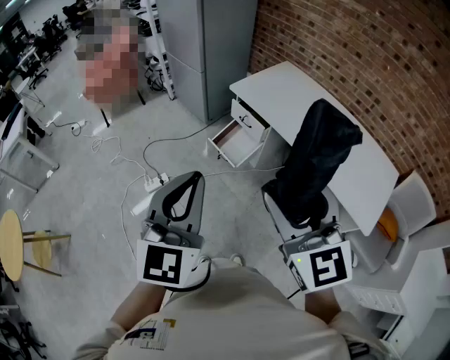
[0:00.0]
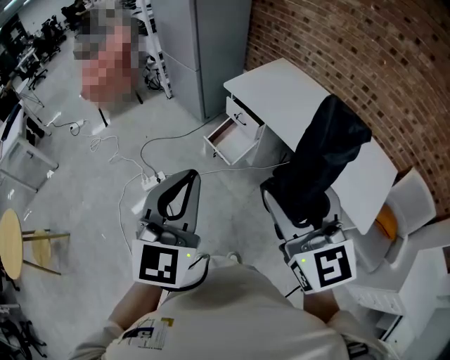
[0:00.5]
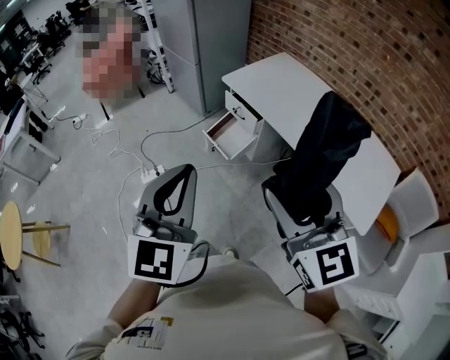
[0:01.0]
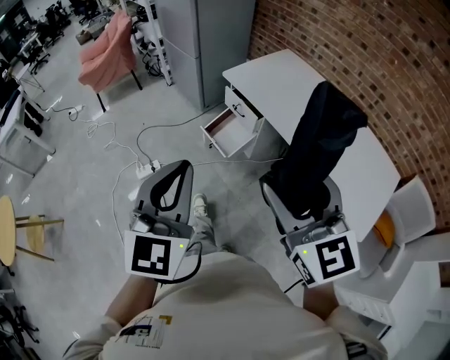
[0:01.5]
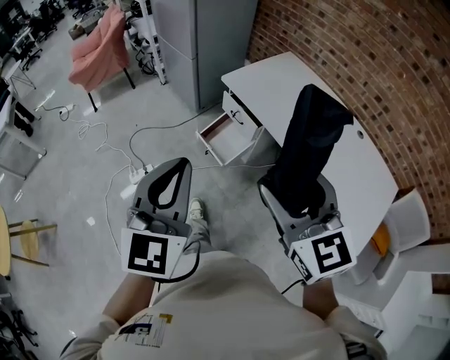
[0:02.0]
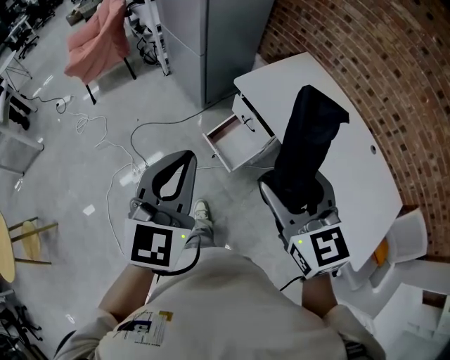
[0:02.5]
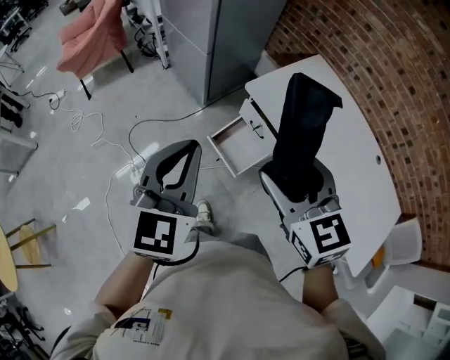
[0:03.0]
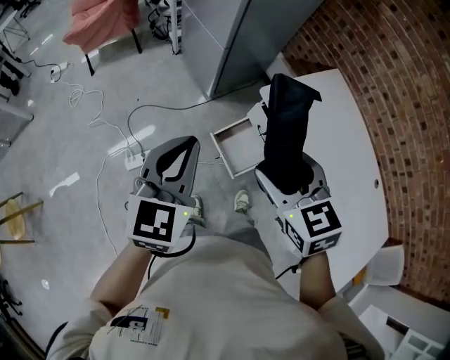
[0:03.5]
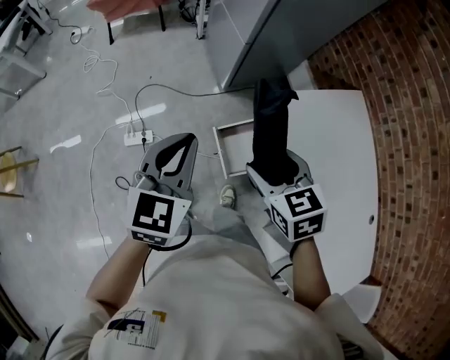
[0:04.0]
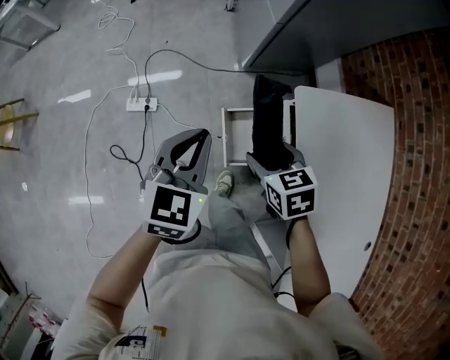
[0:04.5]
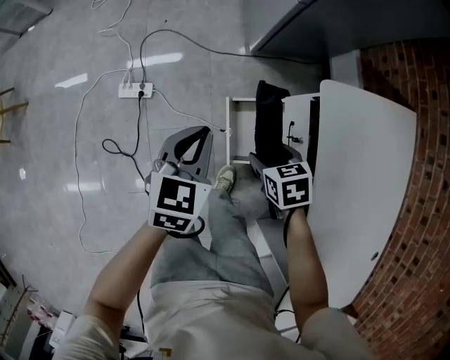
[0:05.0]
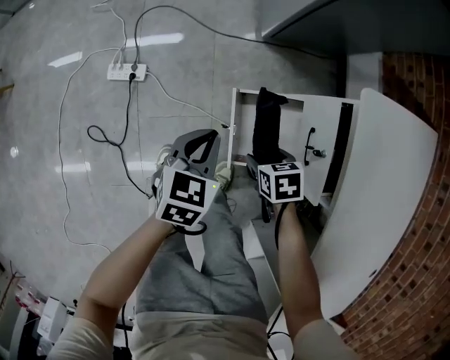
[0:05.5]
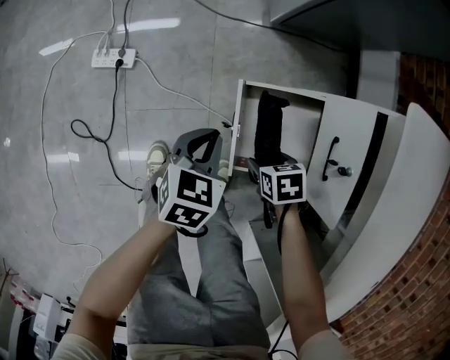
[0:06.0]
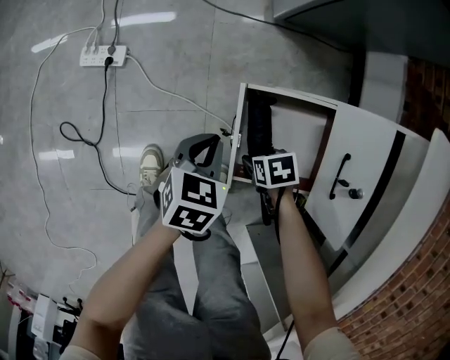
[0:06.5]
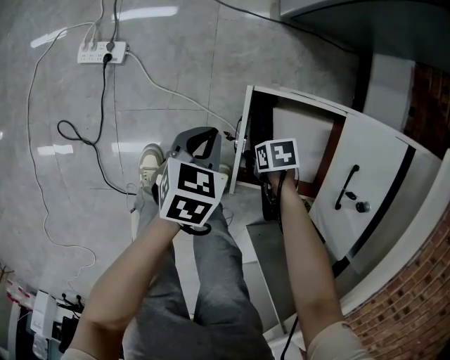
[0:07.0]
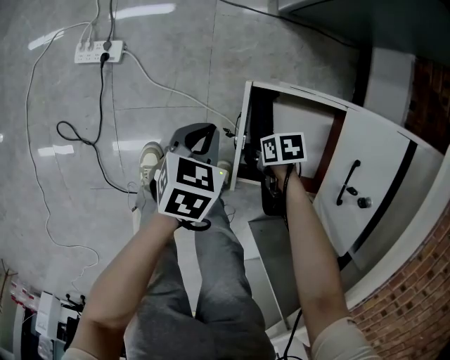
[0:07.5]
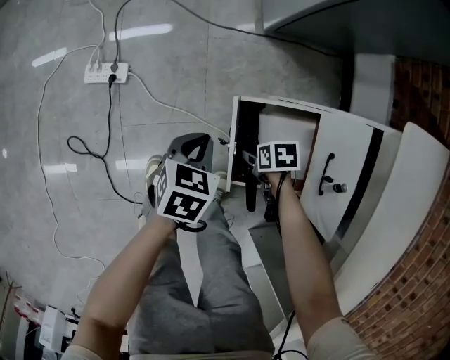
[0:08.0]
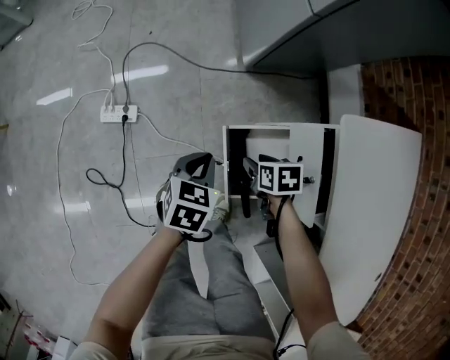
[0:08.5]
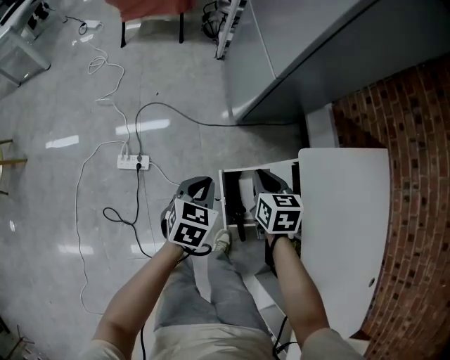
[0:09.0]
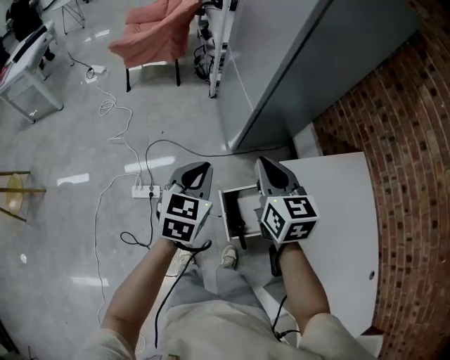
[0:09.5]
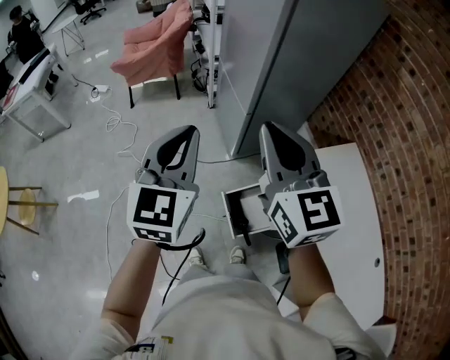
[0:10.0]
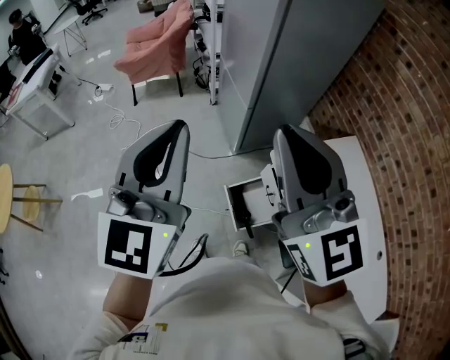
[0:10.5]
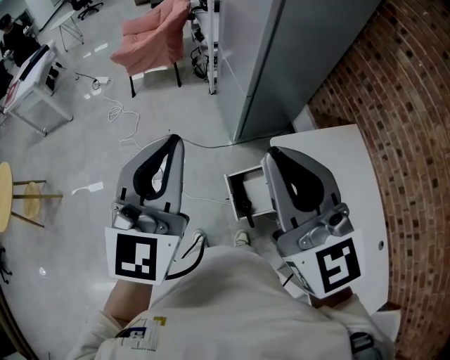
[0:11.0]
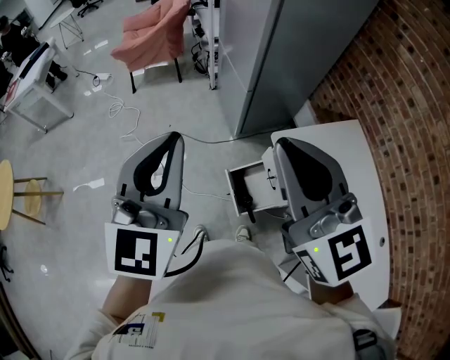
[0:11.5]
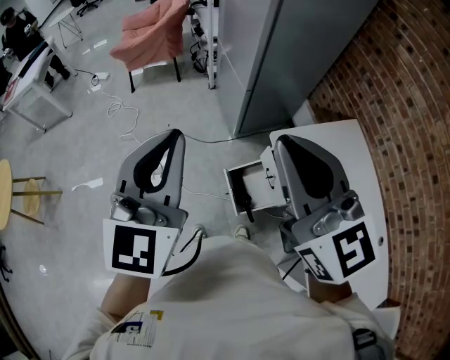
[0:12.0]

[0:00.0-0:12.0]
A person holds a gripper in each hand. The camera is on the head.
0:00.0 to 0:02.0: The right gripper travels forward, downward and to the right by roughly 15 cm; the left gripper is displaced forward by some 15 cm.
0:02.0 to 0:04.0: Both grippers travel together forward and downward, roughly 40 cm. The right gripper points its fingers roughly 30 degrees further downward. Meanwhile the left gripper changes its angle by about 30 degrees.
0:04.0 to 0:06.0: Both grippers travel together downward, about 60 cm. The left gripper rotates roughly 30 degrees, while the right gripper tips its fingers downward by approximately 30 degrees.
0:06.0 to 0:08.0: The right gripper is displaced downward by about 10 cm.
0:08.0 to 0:10.0: Both grippers move upward, approximately 80 cm. The right gripper tilts its fingers about 70 degrees upward, and closes its fingers. The left gripper angles its fingers upward, by approximately 50 degrees.
0:10.0 to 0:12.0: The left gripper shifts some 10 cm backward and upward; the right gripper heads backward, covering approximately 10 cm.

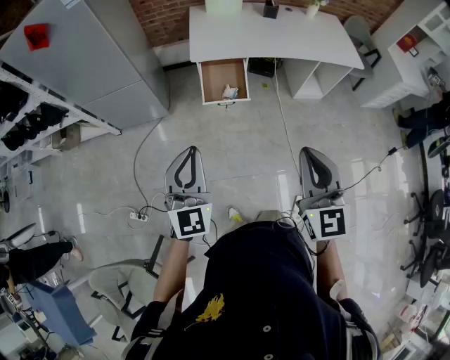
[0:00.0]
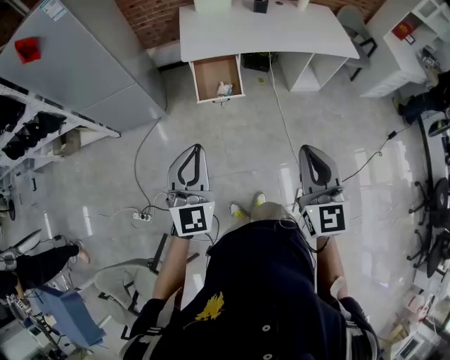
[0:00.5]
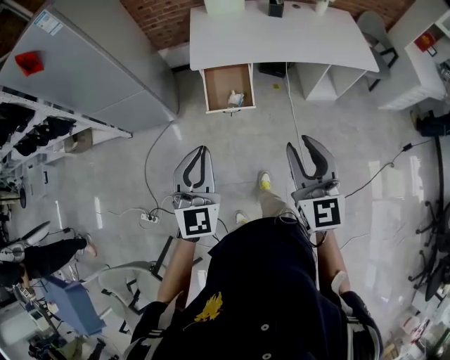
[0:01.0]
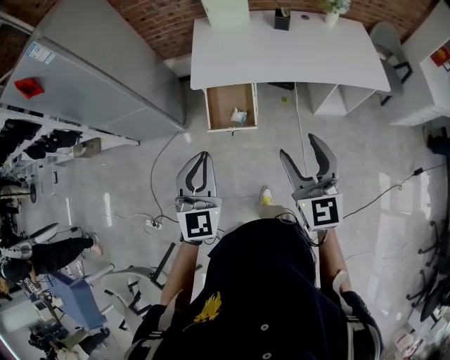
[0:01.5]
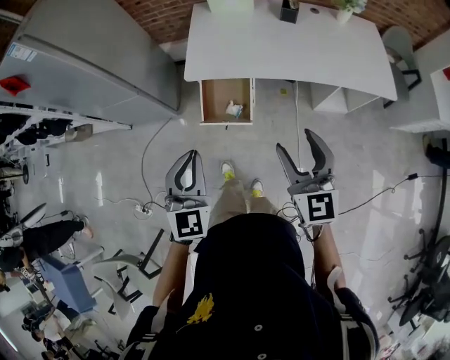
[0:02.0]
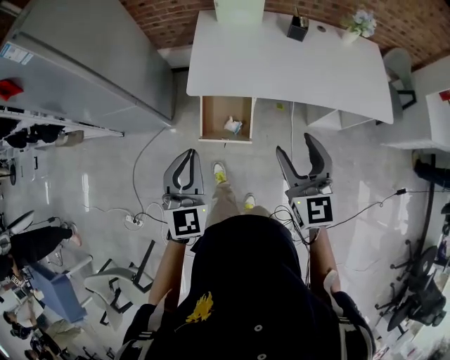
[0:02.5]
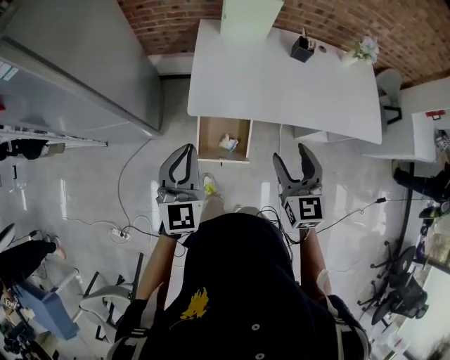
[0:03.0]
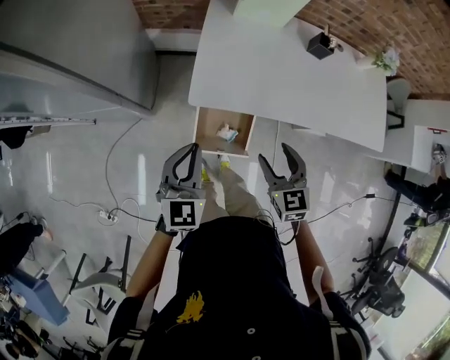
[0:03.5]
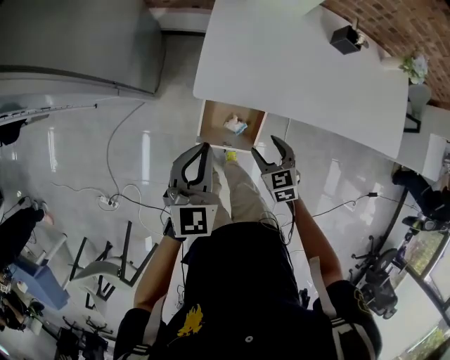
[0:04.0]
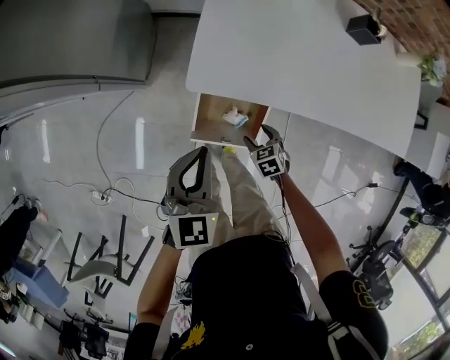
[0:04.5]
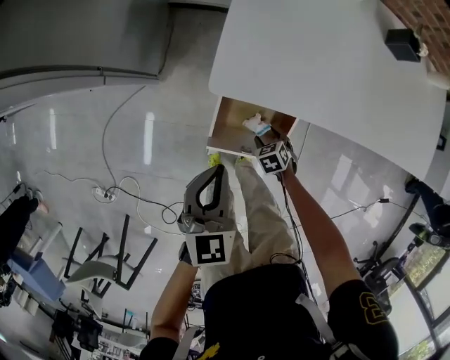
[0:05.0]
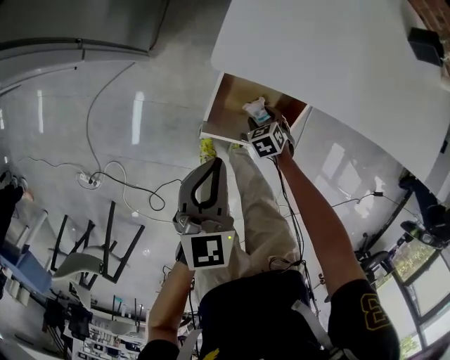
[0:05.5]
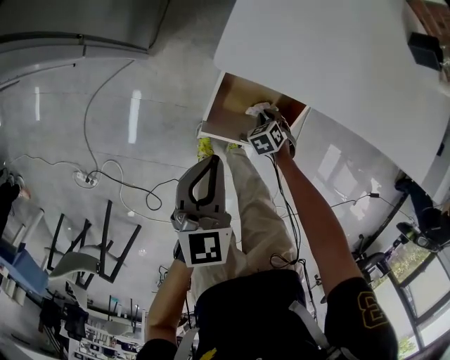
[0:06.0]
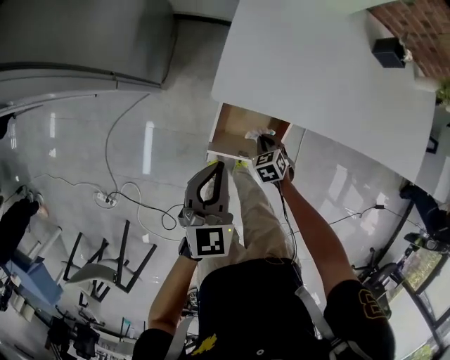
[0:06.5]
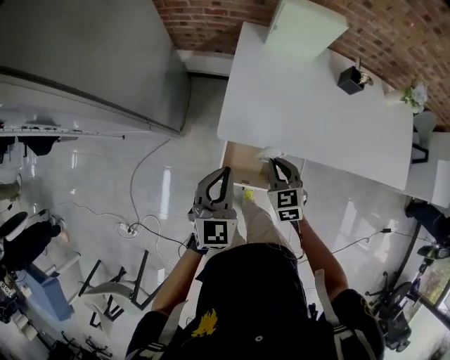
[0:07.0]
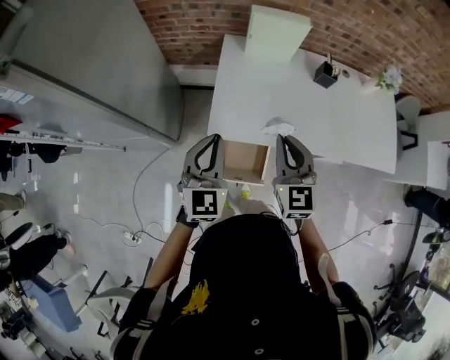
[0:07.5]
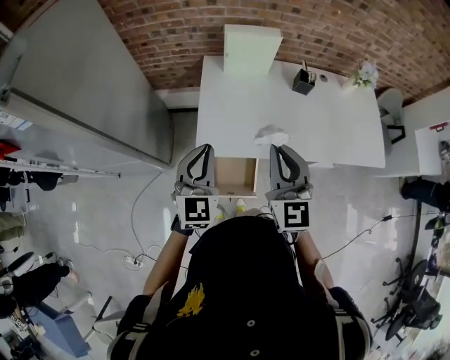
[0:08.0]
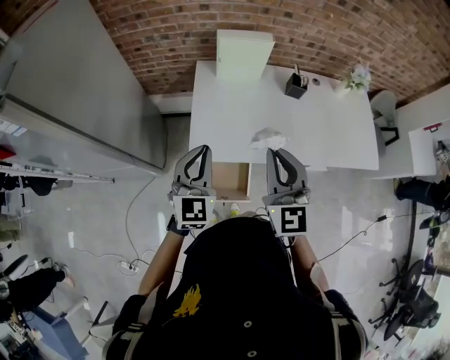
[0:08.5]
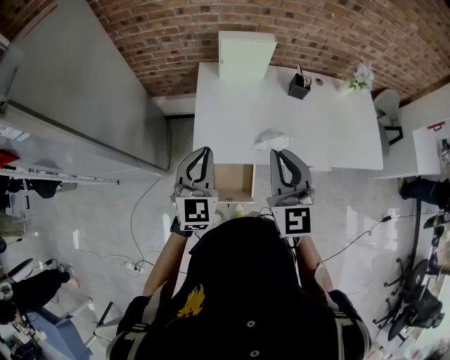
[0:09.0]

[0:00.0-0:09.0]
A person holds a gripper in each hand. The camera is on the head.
0:00.0 to 0:02.0: The grippers both shift forward and to the right by some 30 cm. The right gripper opens up.
0:02.0 to 0:04.5: The left gripper heads forward and downward, covering some 40 cm. Meanwhile the right gripper shifts some 60 cm downward and forward, and points its fingers about 60 degrees further downward.
0:04.5 to 0:07.0: The right gripper shifts some 30 cm upward, swivels some 30 degrees, and closes up, while the left gripper goes approximately 10 cm upward.
0:07.0 to 0:09.0: The left gripper travels upward and forward by some 15 cm; the right gripper travels upward by approximately 35 cm, and tips its fingers upward by approximately 40 degrees.

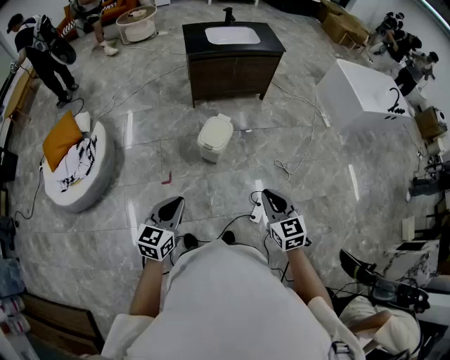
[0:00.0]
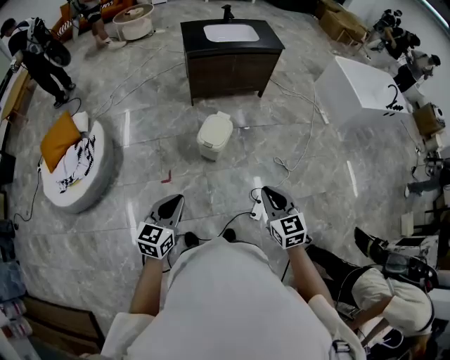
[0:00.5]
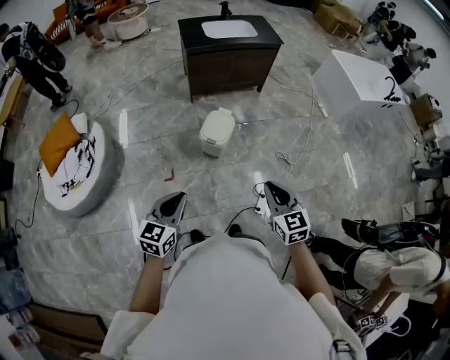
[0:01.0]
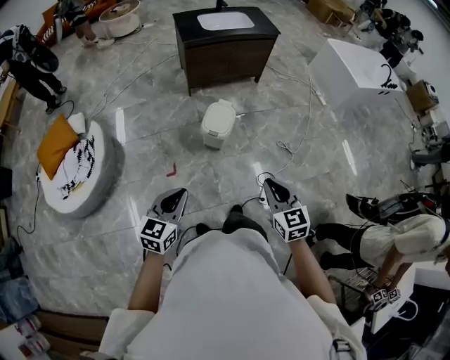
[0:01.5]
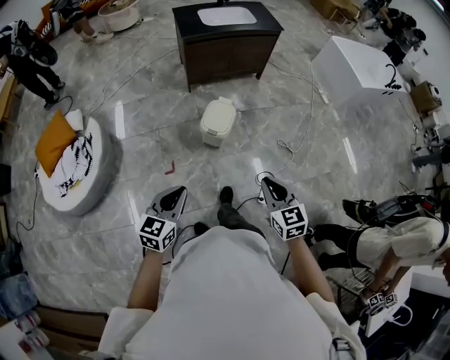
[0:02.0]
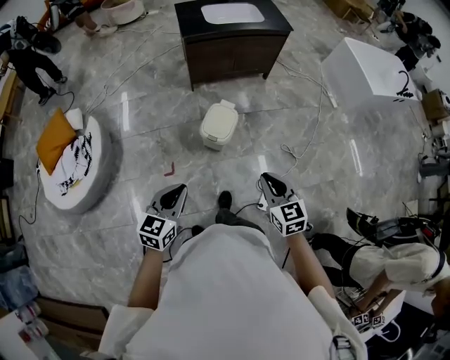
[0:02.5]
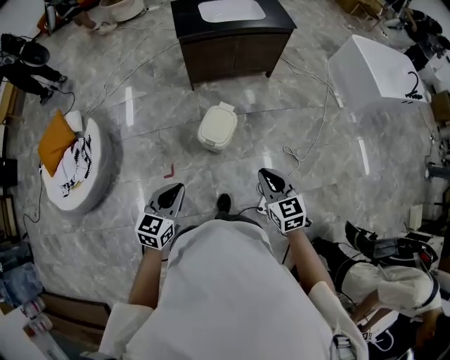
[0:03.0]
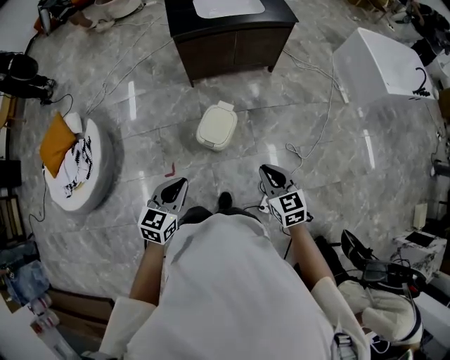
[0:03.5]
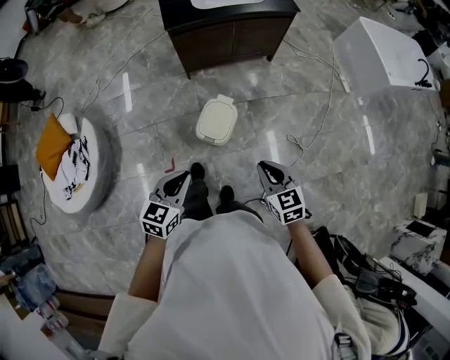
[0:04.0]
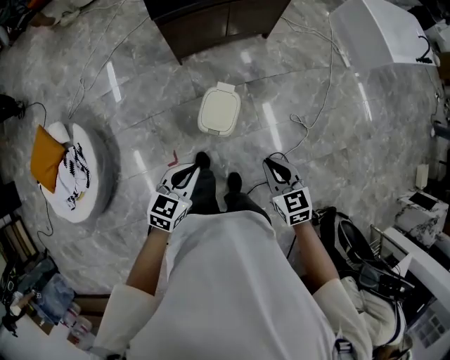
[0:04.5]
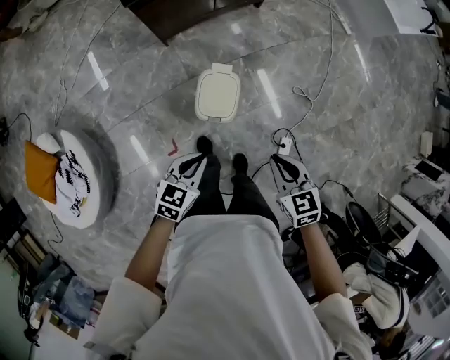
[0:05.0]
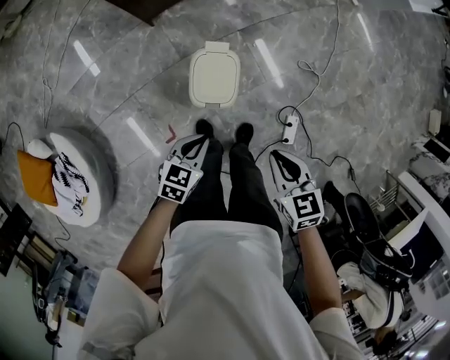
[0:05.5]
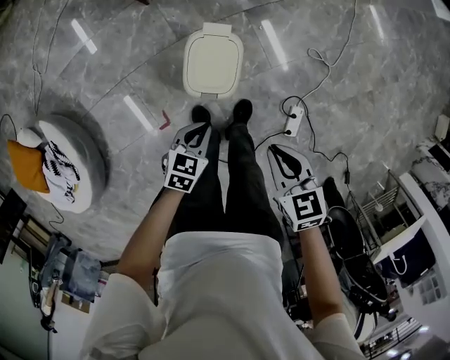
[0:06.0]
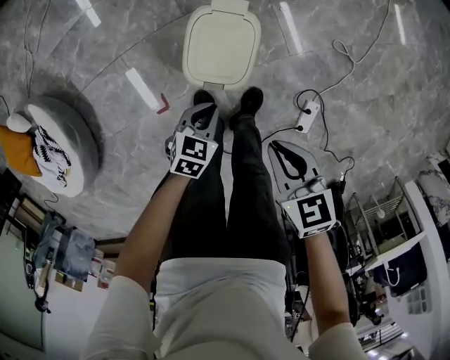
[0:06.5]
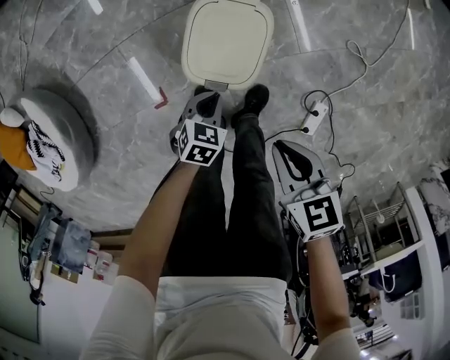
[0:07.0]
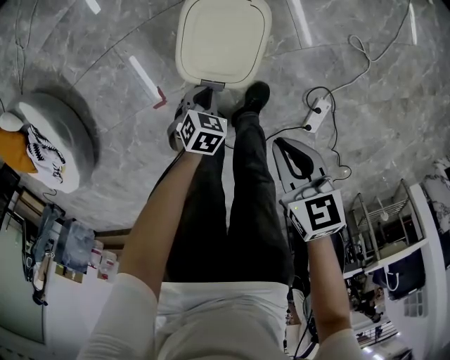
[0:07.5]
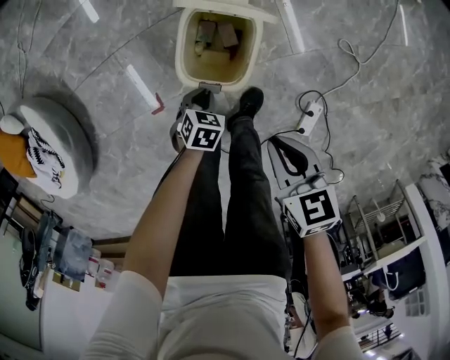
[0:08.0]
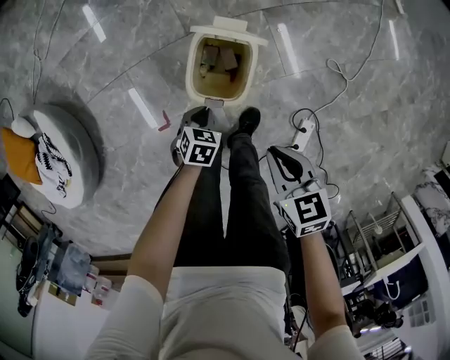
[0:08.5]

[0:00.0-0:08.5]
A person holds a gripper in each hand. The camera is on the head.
0:00.0 to 0:02.0: Both grippers travel together to the left, some 5 cm.
0:02.0 to 0:04.0: The two grippers go approximately 25 cm forward.
0:04.0 to 0:06.5: The right gripper heads downward, covering roughly 25 cm, and rotates approximately 30 degrees. The left gripper moves downward, roughly 40 cm, and turns by about 40 degrees.
0:06.5 to 0:08.5: The left gripper is displaced downward by about 5 cm.
